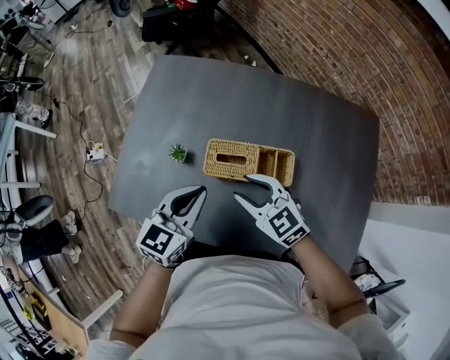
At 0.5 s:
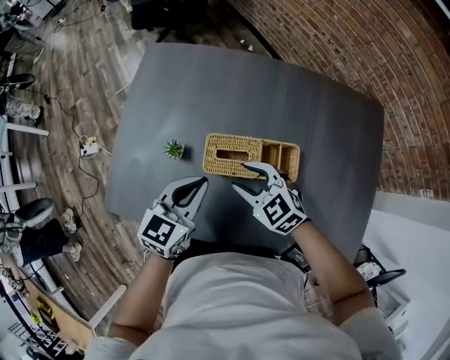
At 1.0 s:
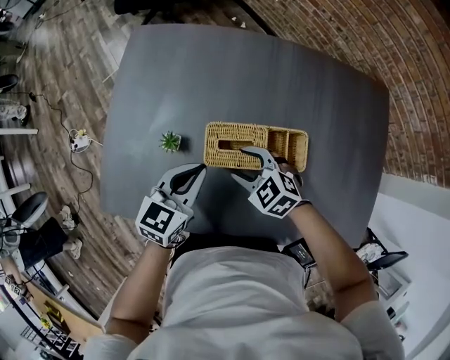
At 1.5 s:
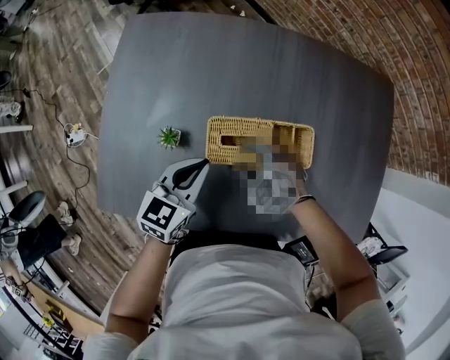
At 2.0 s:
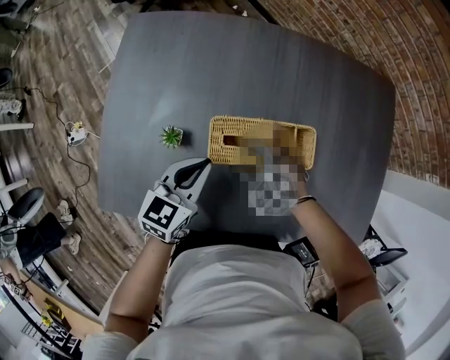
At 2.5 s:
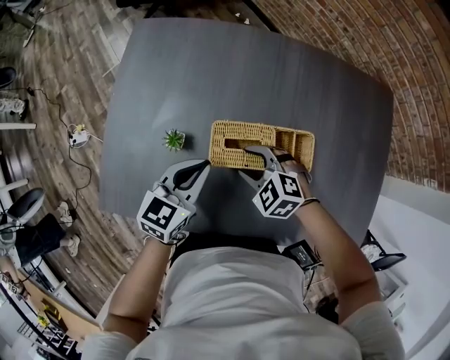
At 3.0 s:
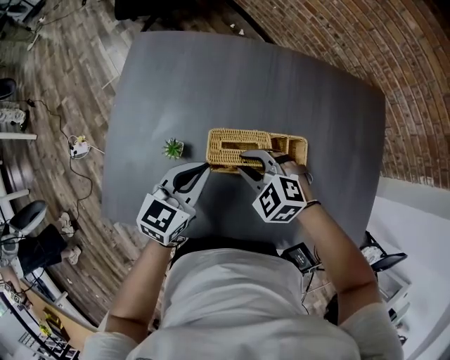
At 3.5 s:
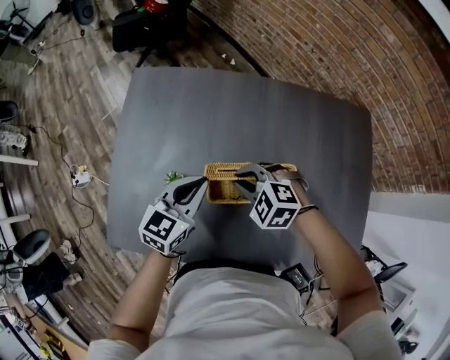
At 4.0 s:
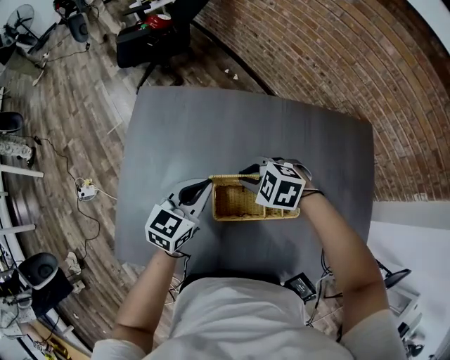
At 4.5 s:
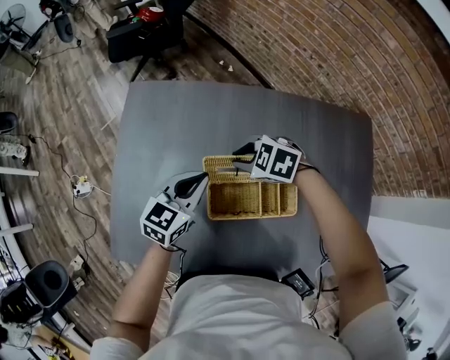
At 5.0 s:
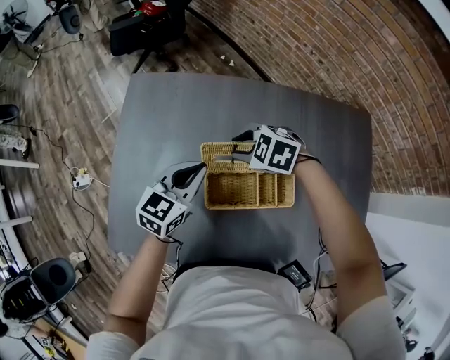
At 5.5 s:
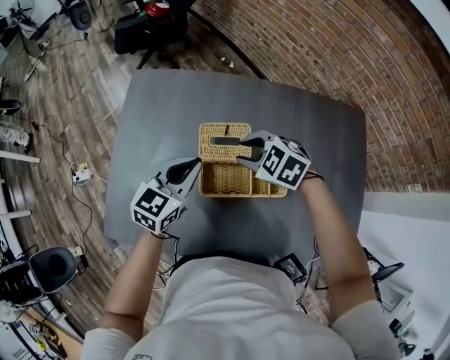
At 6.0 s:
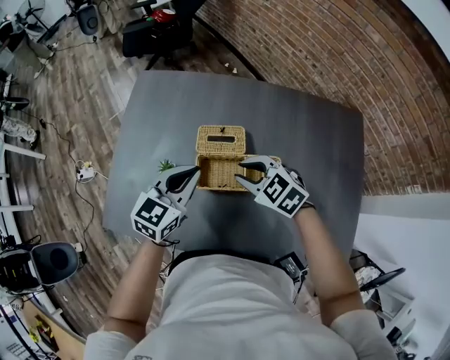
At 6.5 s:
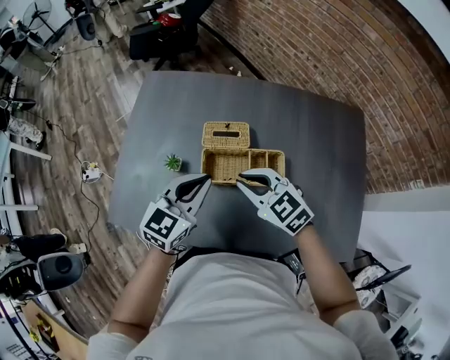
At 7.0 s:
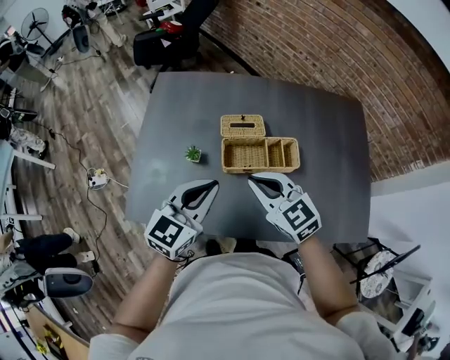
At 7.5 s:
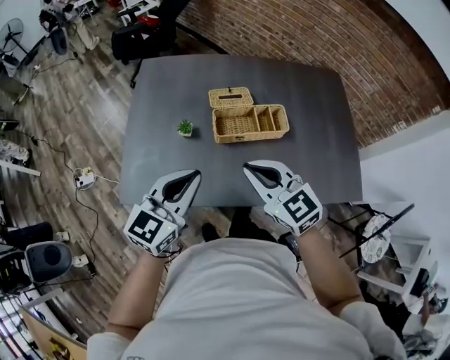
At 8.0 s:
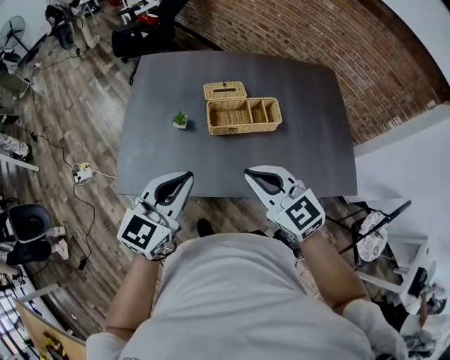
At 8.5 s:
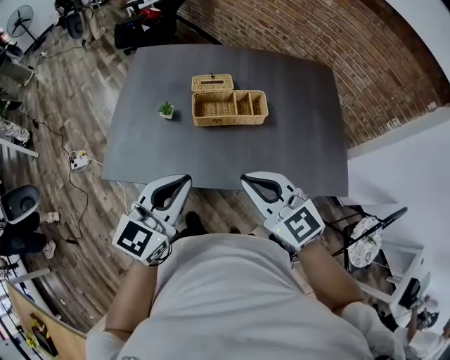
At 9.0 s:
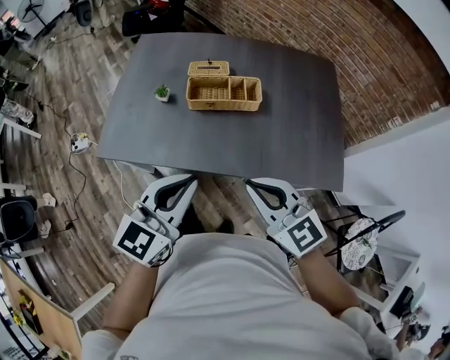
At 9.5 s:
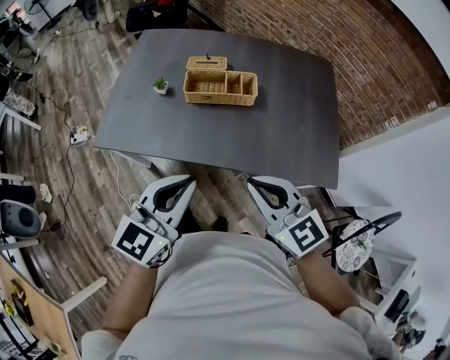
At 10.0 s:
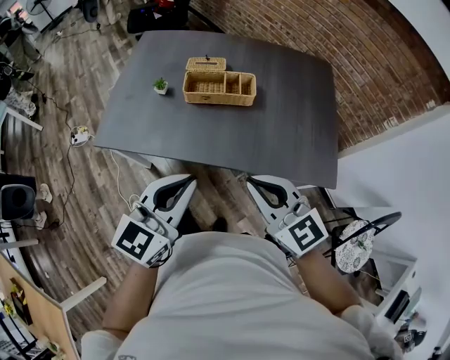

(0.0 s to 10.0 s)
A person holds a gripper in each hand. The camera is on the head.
0.0 s - 2.0 s: The right gripper moves downward, roughly 15 cm, and turns by roughly 30 degrees. The left gripper goes about 15 cm downward and forward.
2.0 s - 4.0 s: The left gripper moves forward and upward, about 10 cm. The right gripper moves upward and forward, approximately 15 cm, and closes up.
4.0 s - 6.0 s: The right gripper shifts by roughly 10 cm, and changes its angle by about 20 degrees. Meanwhile the left gripper moves approximately 10 cm.
6.0 s - 8.0 s: The left gripper shifts roughly 30 cm backward and to the left, while the right gripper goes about 30 cm backward and upward, swivels roughly 30 degrees, and closes up.
8.0 s - 10.0 s: The two grippers go roughly 20 cm backward and to the right.

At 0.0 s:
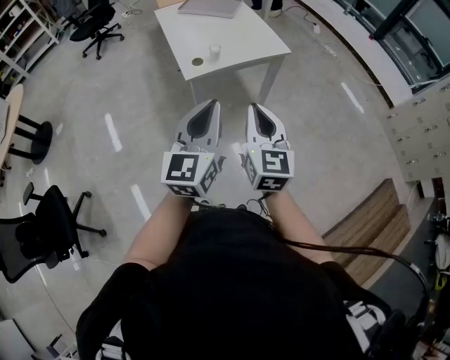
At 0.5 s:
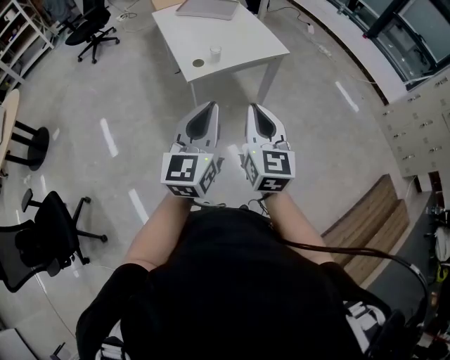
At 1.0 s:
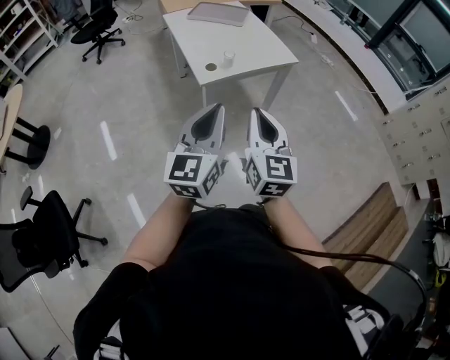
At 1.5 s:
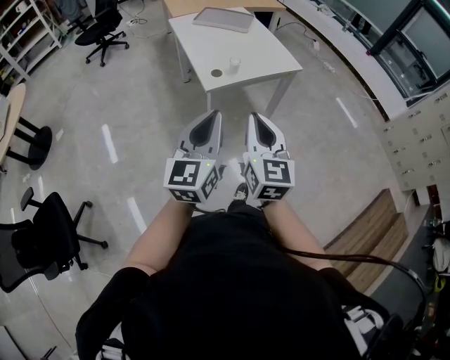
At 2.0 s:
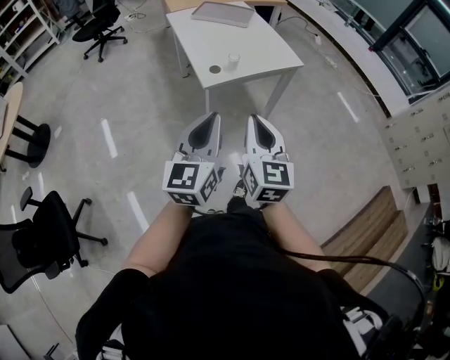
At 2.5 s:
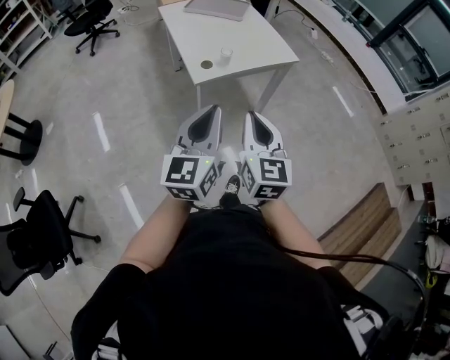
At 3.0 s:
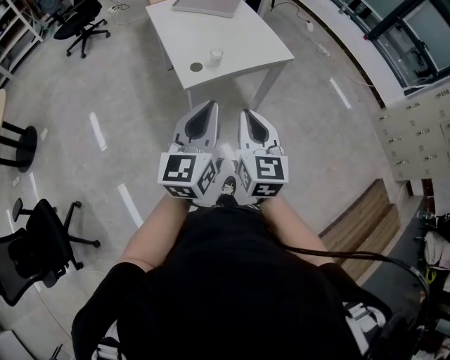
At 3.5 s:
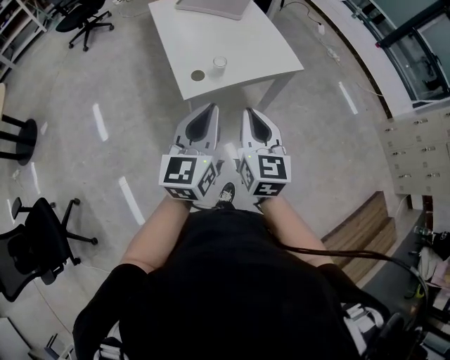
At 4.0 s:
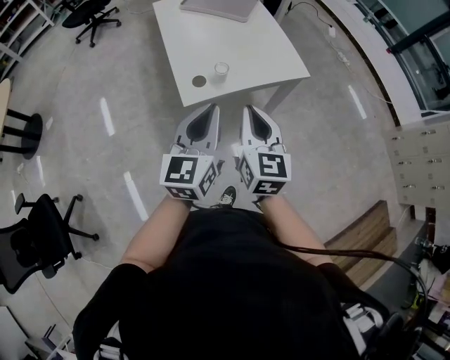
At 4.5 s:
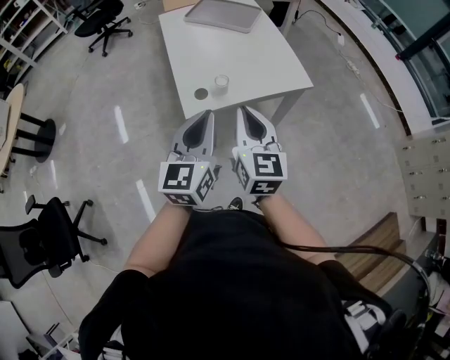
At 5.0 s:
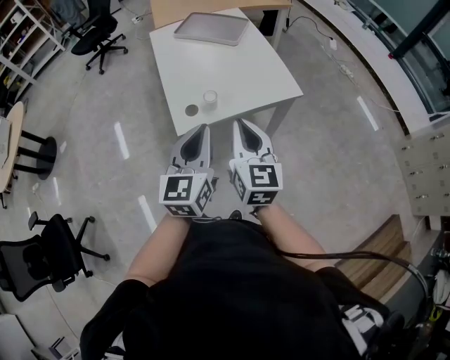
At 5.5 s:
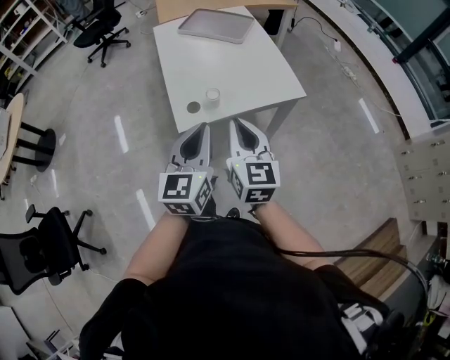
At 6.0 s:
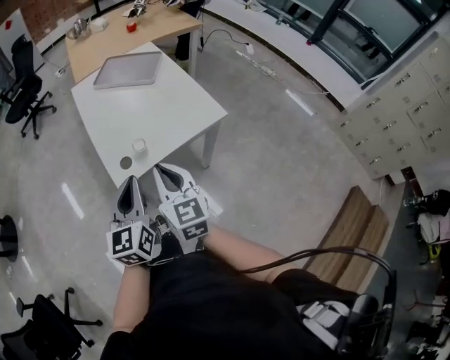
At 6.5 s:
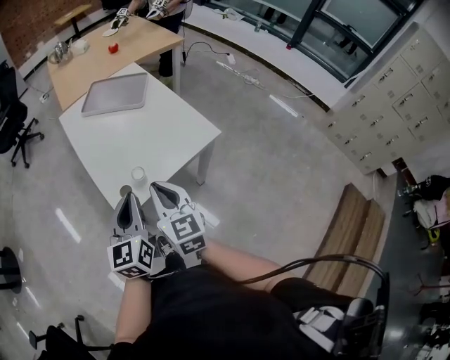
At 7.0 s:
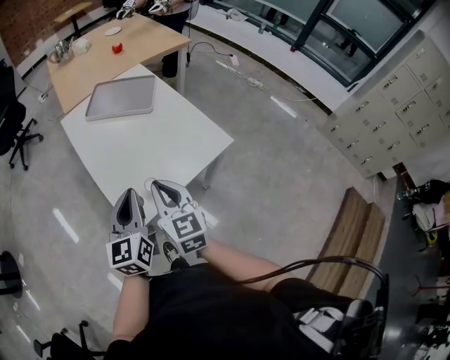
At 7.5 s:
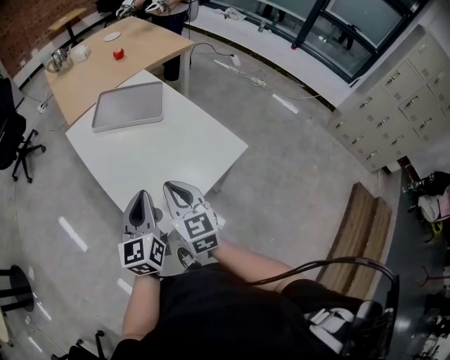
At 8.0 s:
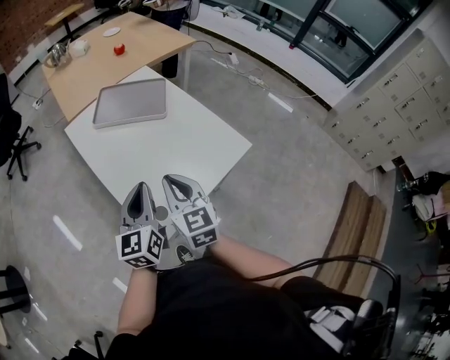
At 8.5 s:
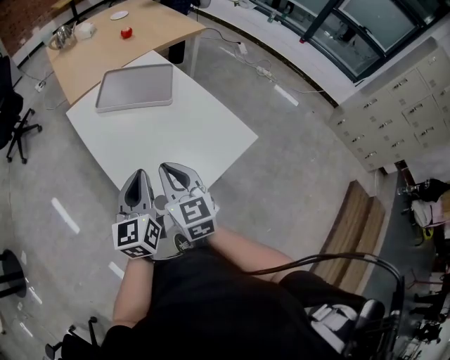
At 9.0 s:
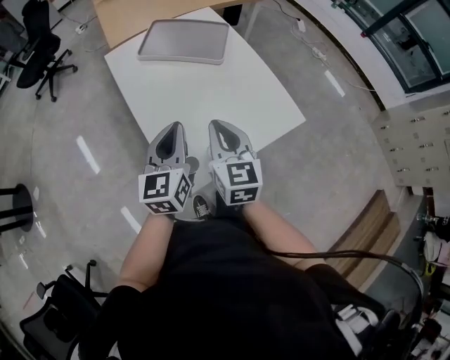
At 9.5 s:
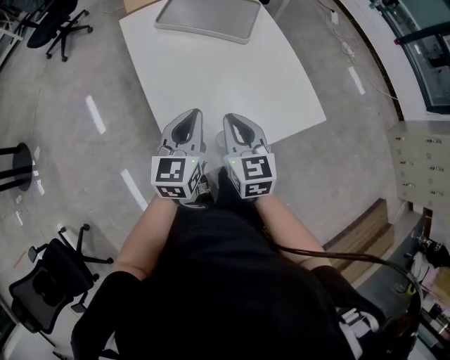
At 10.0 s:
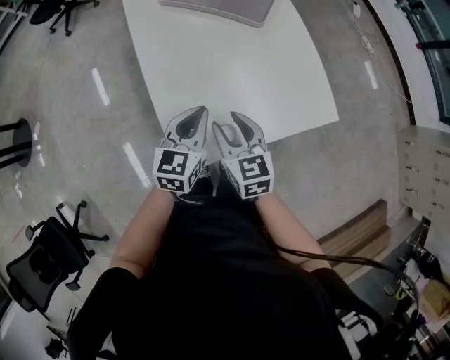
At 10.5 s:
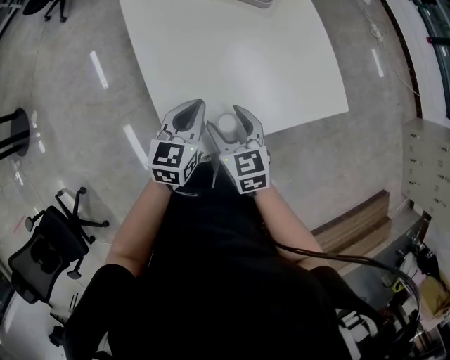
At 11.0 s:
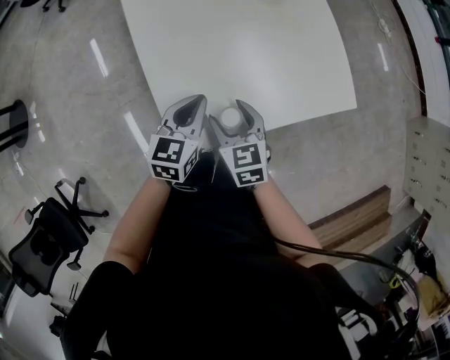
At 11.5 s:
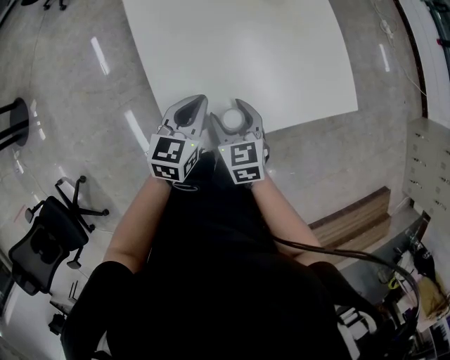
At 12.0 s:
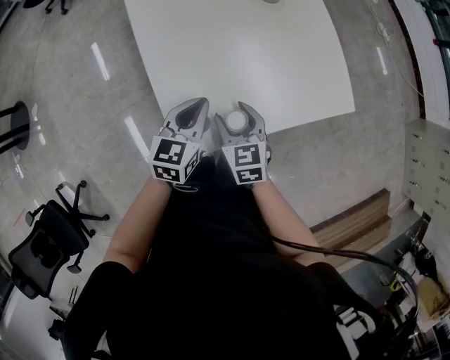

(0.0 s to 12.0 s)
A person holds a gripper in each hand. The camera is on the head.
0.0 s - 2.0 s: Both grippers travel together to the left, some 10 cm.
2.0 s - 4.0 s: The two grippers go approximately 25 cm forward.
4.0 s - 6.0 s: The two grippers go roughly 5 cm forward.
6.0 s - 8.0 s: The two grippers go approximately 25 cm forward and to the left.
8.0 s - 10.0 s: Both grippers travel together downward, approximately 15 cm. The right gripper swivels about 30 degrees, and opens.
10.0 s - 12.0 s: The two grippers go roughly 10 cm downward. The right gripper opens.

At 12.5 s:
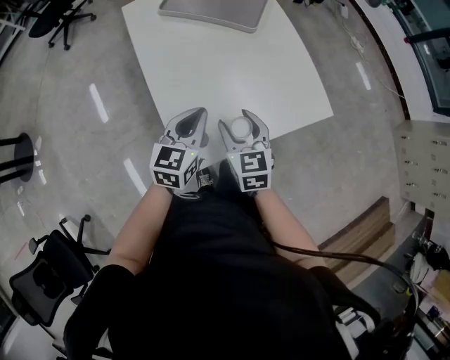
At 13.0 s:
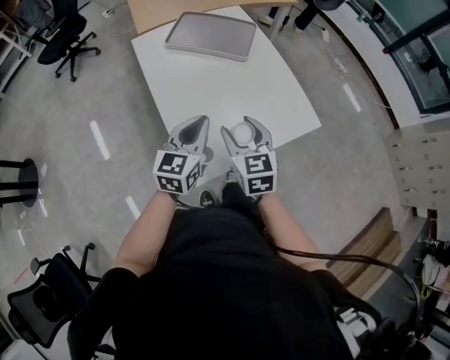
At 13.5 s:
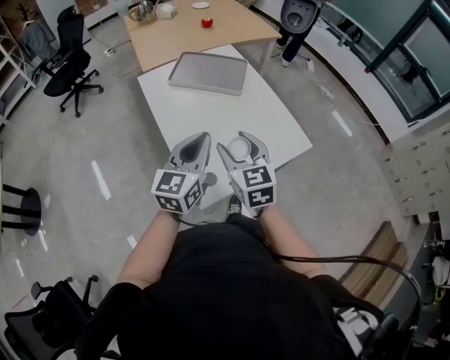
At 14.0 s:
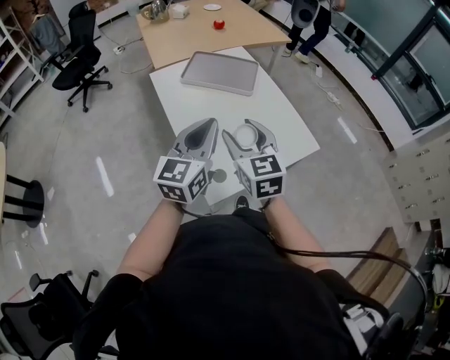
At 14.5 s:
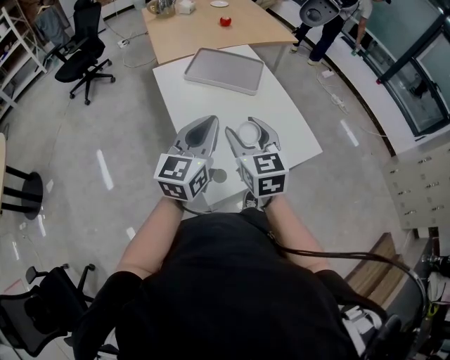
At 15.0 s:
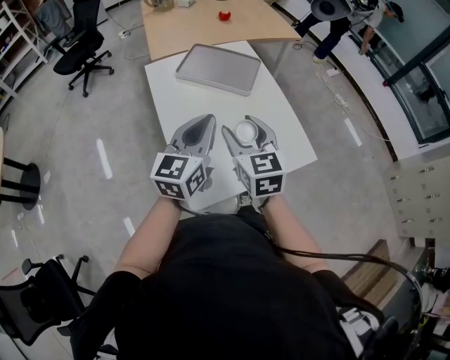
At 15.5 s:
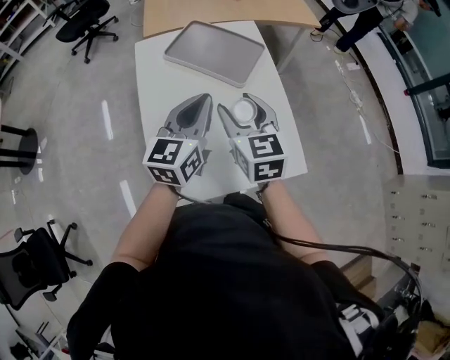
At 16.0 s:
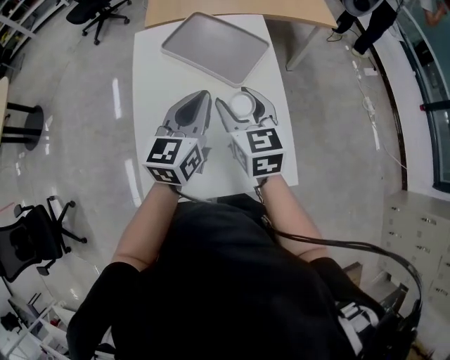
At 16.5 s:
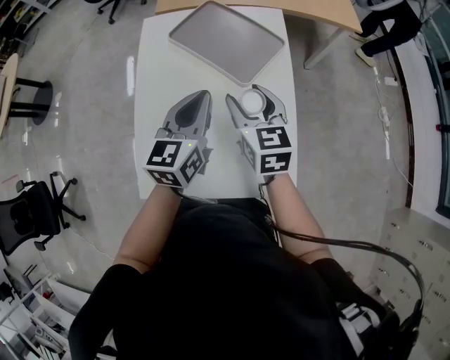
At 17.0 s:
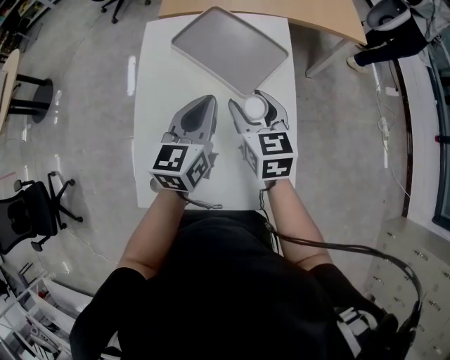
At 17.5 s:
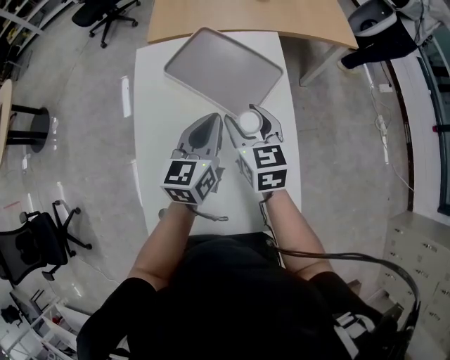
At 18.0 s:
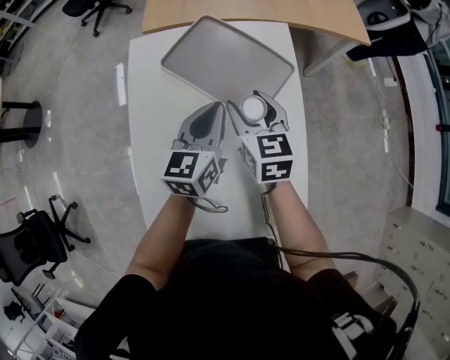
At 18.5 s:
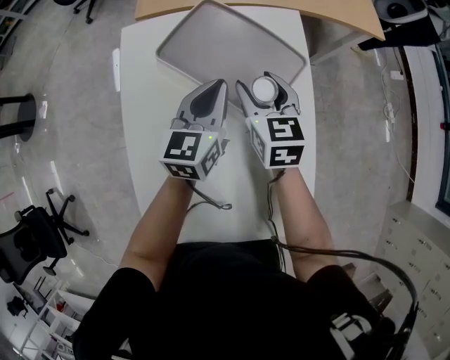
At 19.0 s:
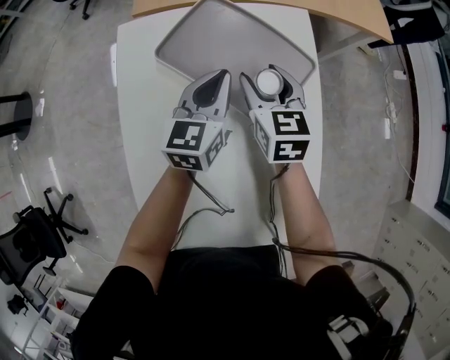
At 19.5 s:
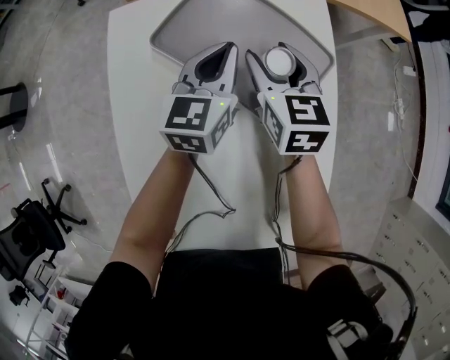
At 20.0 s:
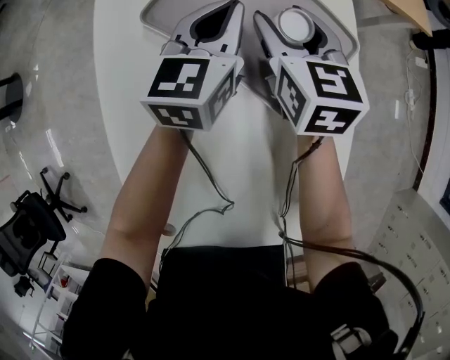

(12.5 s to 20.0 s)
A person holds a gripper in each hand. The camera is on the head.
12.5 s - 14.5 s: The grippers both shift upward by about 20 cm. The left gripper changes its angle by approximately 20 degrees.
14.5 s - 16.5 s: The left gripper changes place by roughly 35 cm, and turns by about 30 degrees. Meanwhile the right gripper ends up about 40 cm from where it was, and rotates some 30 degrees.
16.5 s - 18.0 s: The right gripper is displaced forward by approximately 15 cm. Meanwhile the left gripper heads forward and downward, covering about 15 cm.
18.0 s - 20.0 s: Both grippers move forward and downward, approximately 20 cm.
